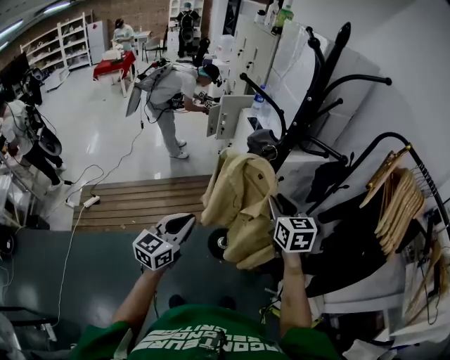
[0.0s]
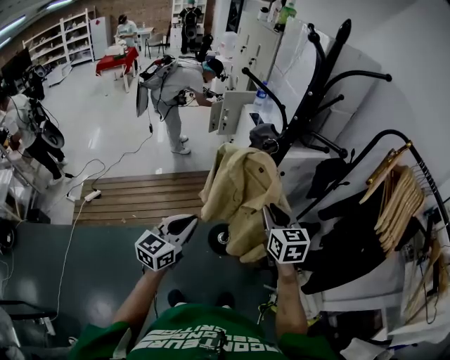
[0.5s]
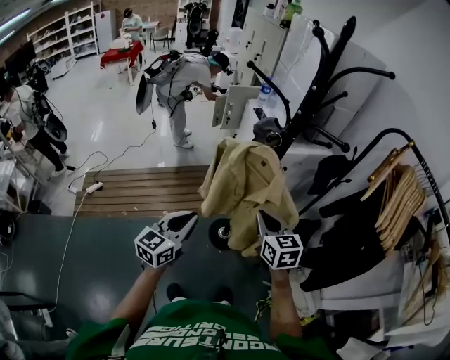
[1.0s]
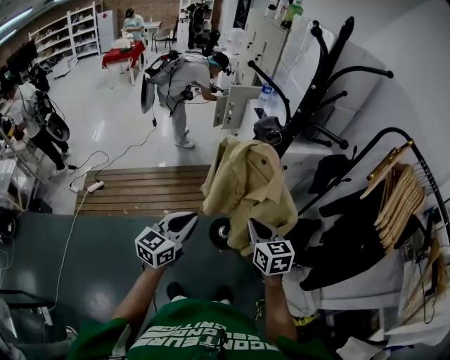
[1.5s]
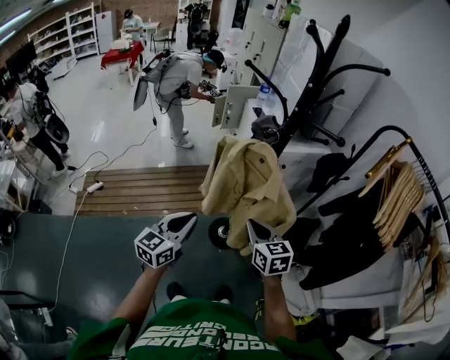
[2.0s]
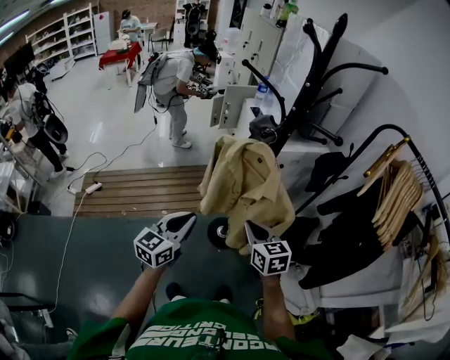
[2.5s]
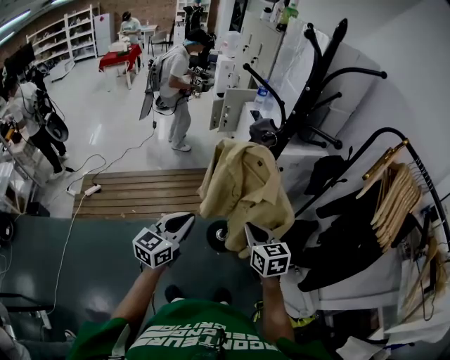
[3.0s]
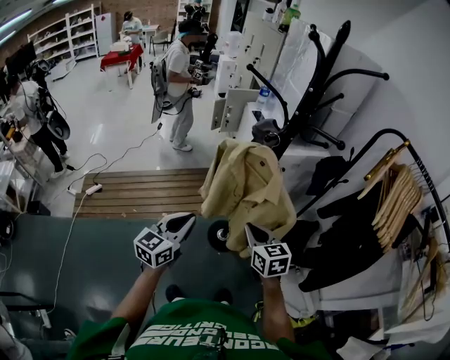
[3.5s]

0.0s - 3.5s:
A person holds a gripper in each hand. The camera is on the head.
0.0s - 2.0s: The left gripper travels backward by about 5 cm; the right gripper heads backward and downward, covering approximately 15 cm, and closes.
2.0s - 3.5s: Both grippers stay about where they are.

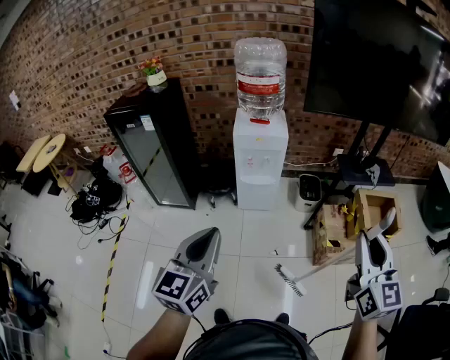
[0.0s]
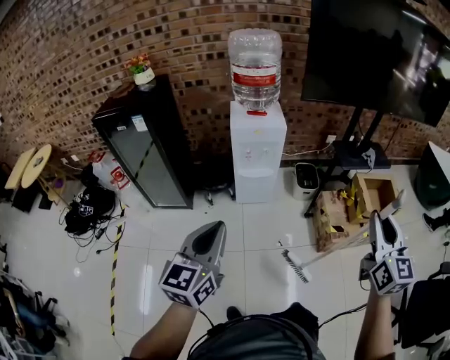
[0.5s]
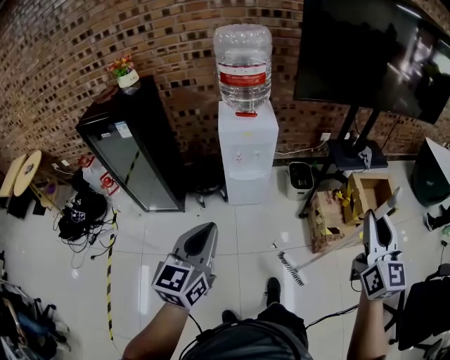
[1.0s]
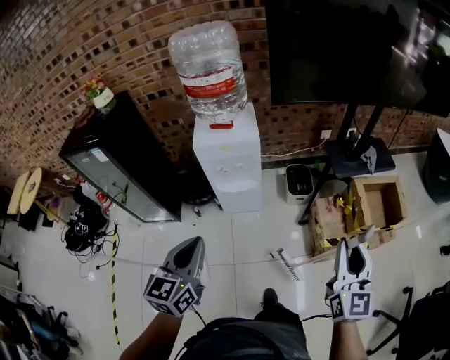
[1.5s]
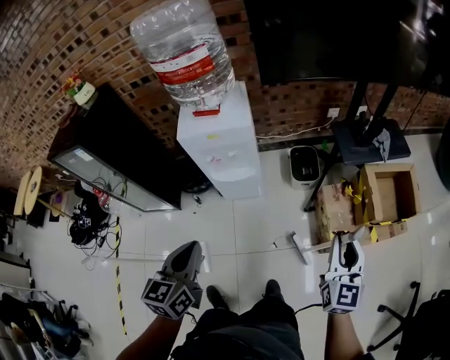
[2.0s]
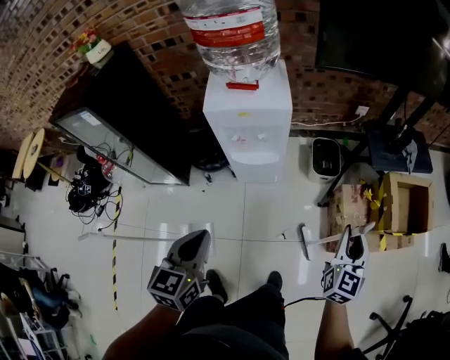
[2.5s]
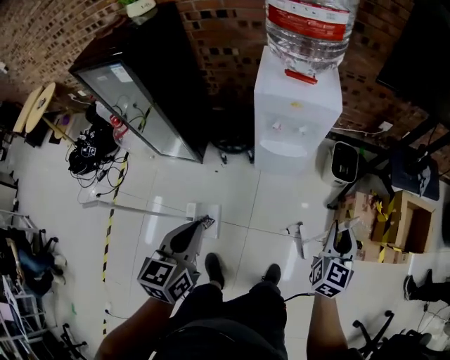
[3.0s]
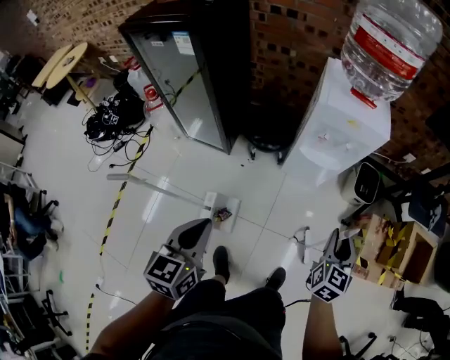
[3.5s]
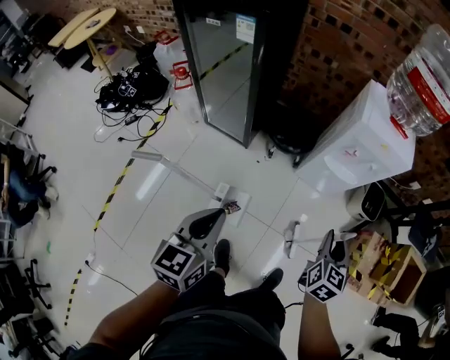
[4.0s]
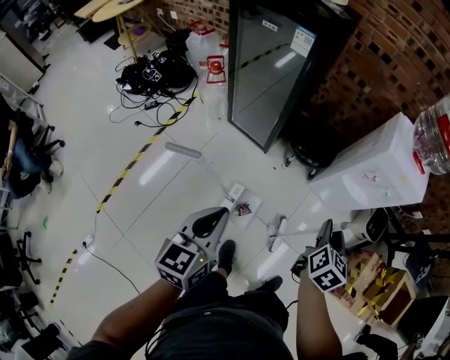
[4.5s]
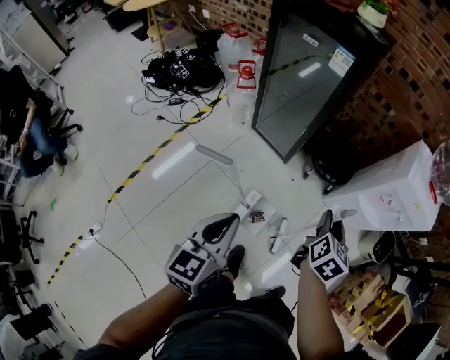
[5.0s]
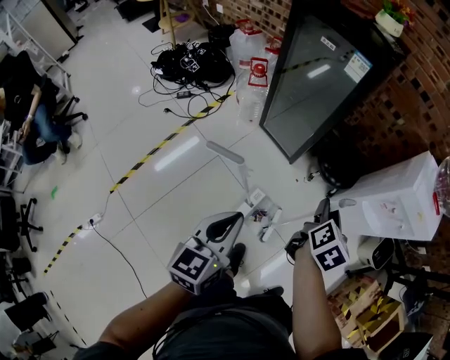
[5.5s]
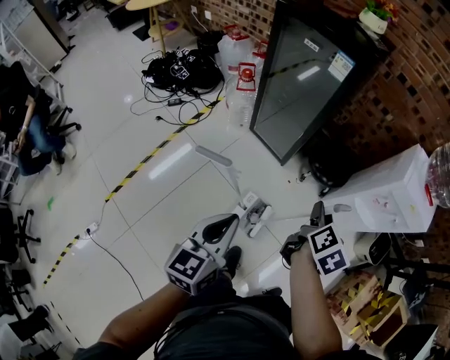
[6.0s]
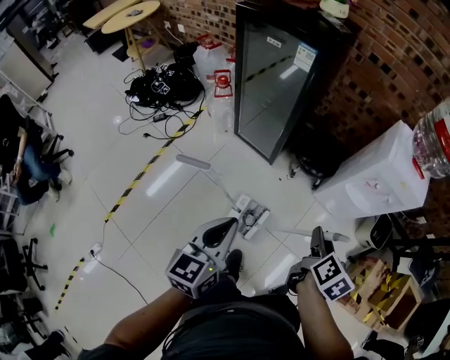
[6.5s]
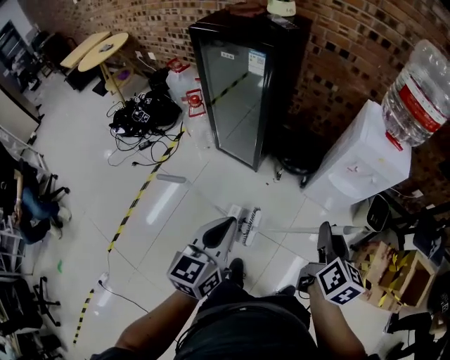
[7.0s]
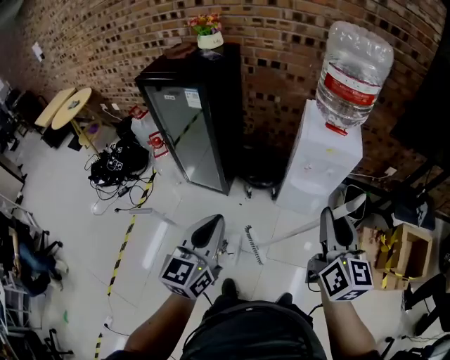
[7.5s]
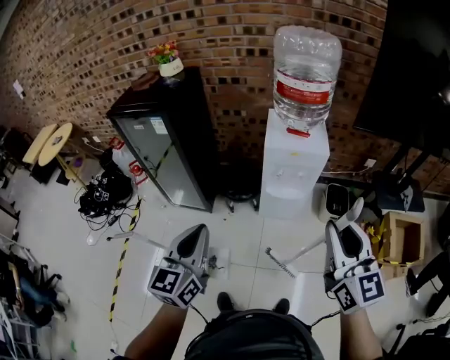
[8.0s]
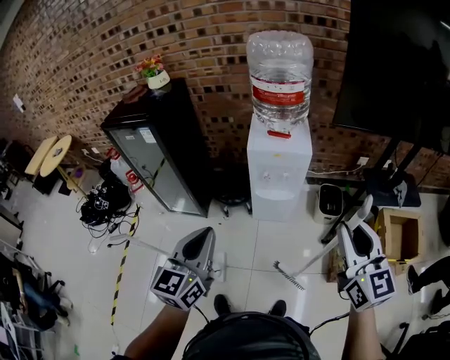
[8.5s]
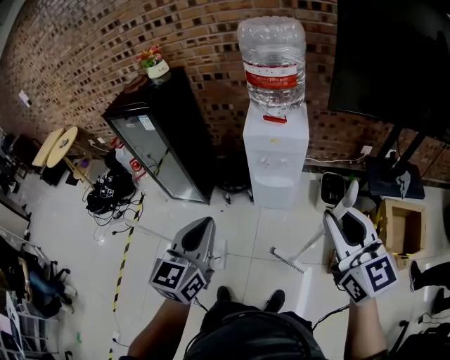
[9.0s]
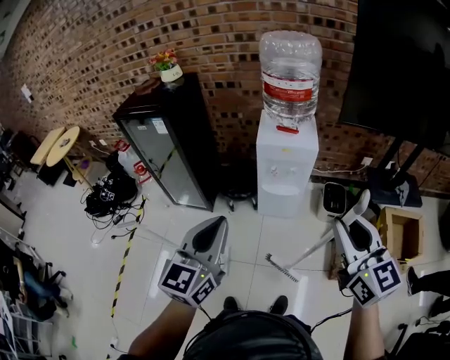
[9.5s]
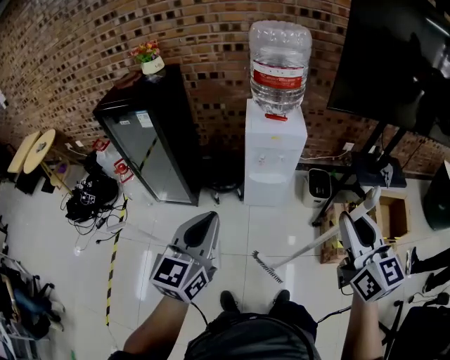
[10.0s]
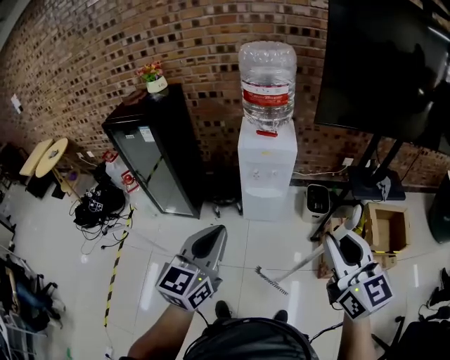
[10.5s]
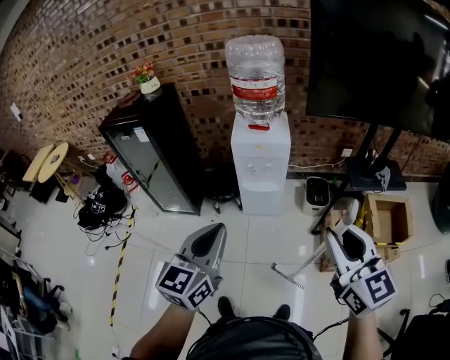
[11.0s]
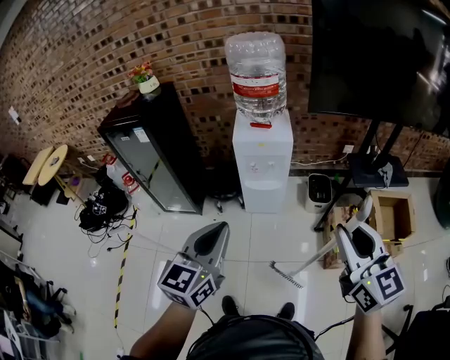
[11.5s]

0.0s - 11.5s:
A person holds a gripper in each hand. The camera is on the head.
0.0s - 2.0s: The two grippers go some 40 cm forward and downward.
2.0s - 4.0s: Both grippers are carried to the left, roughly 50 cm. The right gripper changes its angle by roughly 20 degrees.
4.0s - 6.0s: The left gripper travels to the left by roughly 15 cm; the right gripper goes approximately 30 cm to the left, and turns by about 30 degrees.
6.0s - 7.5s: Both grippers move to the right and upward, about 40 cm. The left gripper swivels roughly 20 degrees. Meanwhile the right gripper turns by some 30 degrees.
7.5s - 9.5s: The left gripper heads to the right and upward, covering about 20 cm. Meanwhile the right gripper is displaced to the right, backward and upward by roughly 25 cm.
9.5s - 11.5s: The right gripper goes about 10 cm to the right and backward, while the left gripper moves to the right, approximately 10 cm.

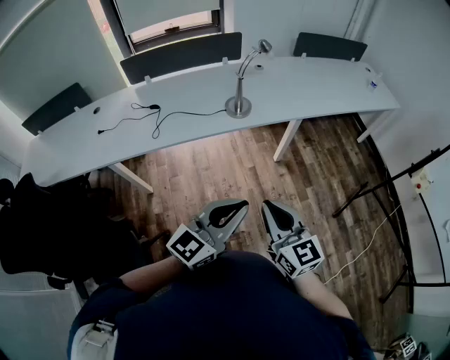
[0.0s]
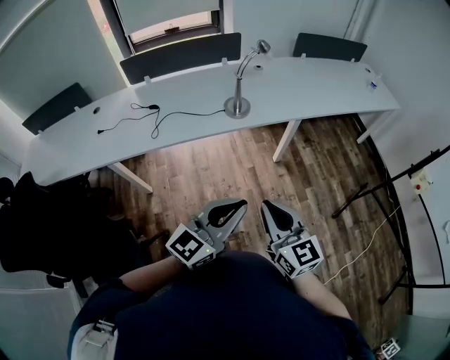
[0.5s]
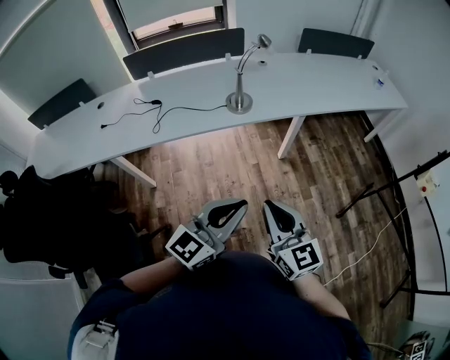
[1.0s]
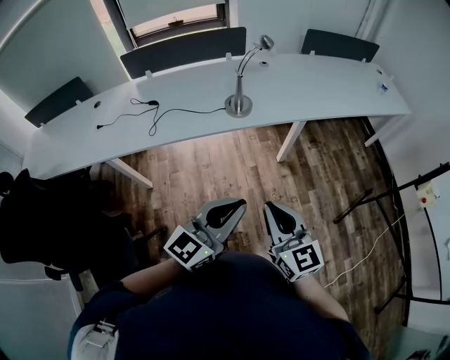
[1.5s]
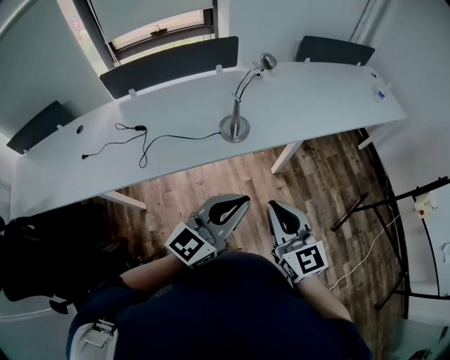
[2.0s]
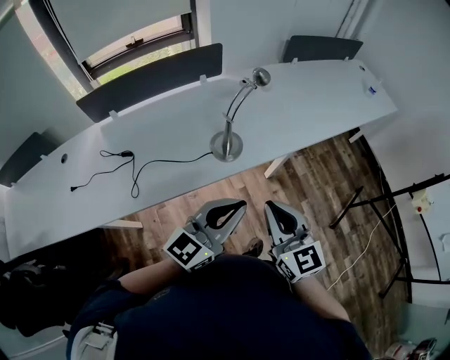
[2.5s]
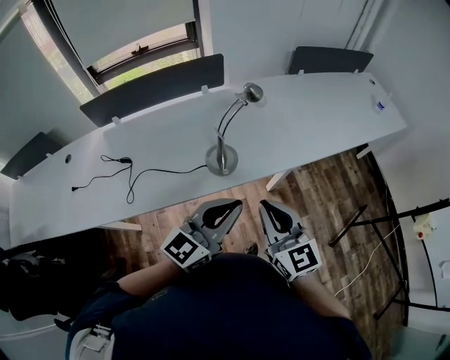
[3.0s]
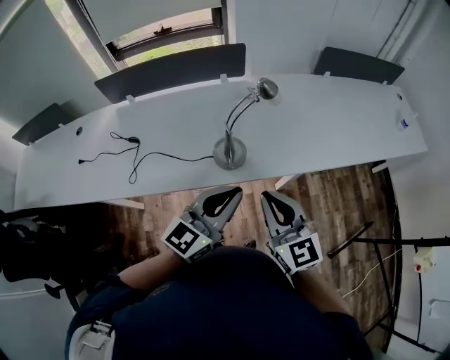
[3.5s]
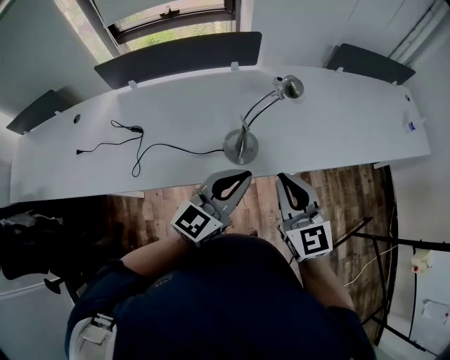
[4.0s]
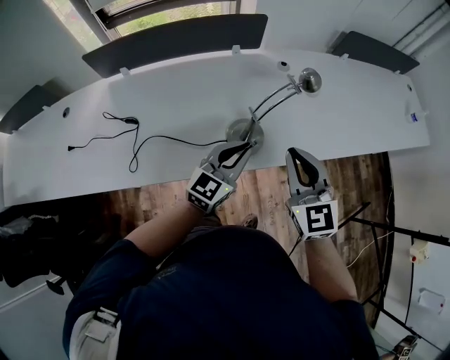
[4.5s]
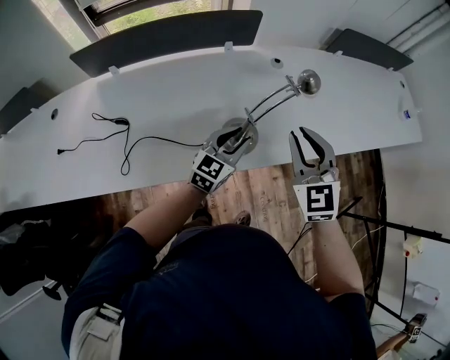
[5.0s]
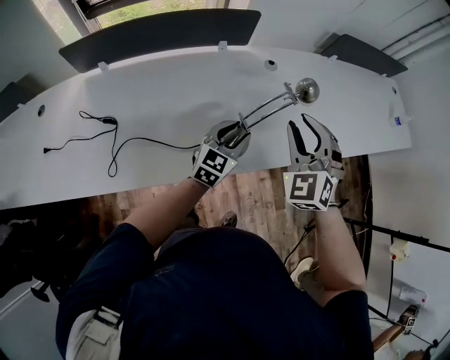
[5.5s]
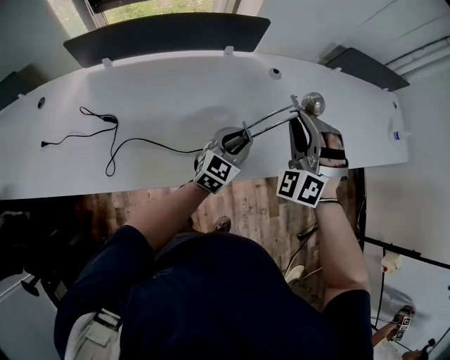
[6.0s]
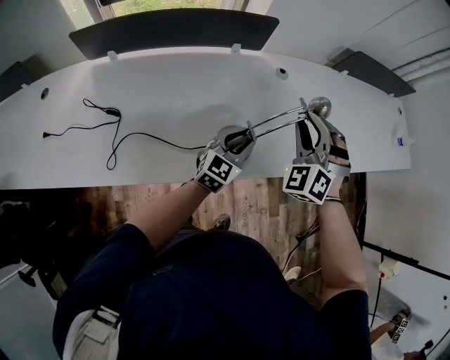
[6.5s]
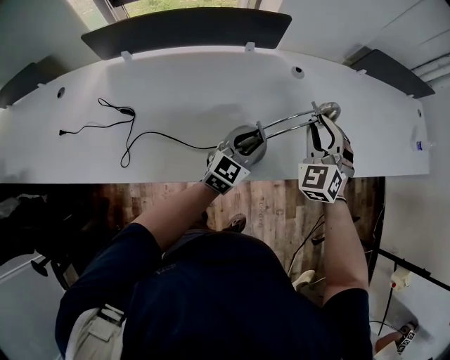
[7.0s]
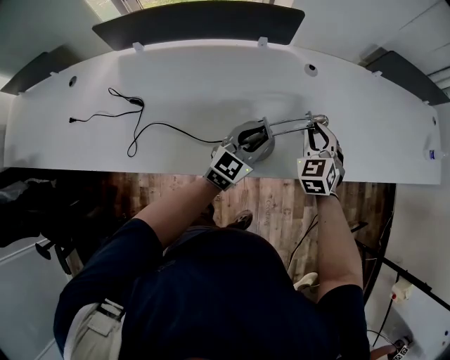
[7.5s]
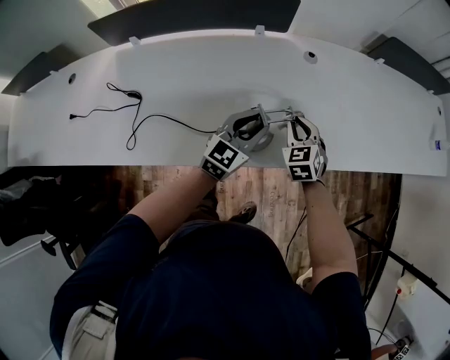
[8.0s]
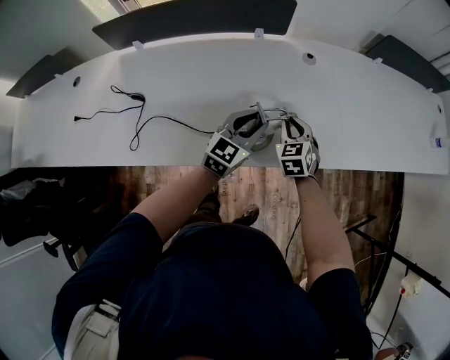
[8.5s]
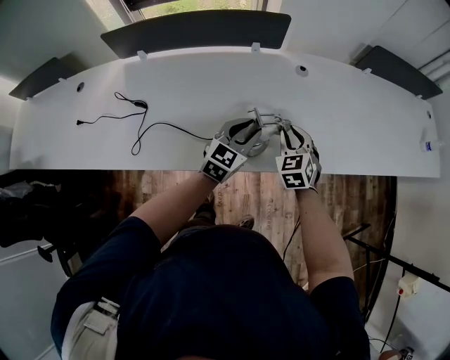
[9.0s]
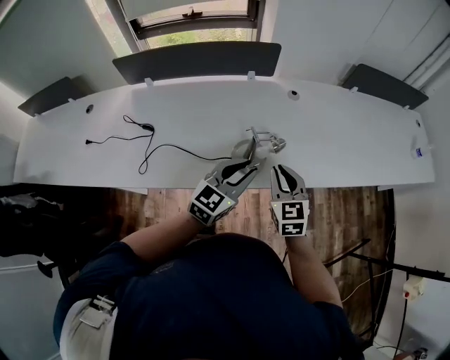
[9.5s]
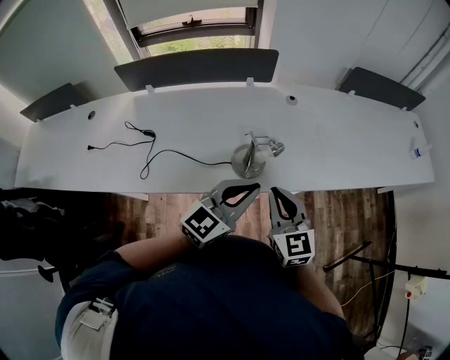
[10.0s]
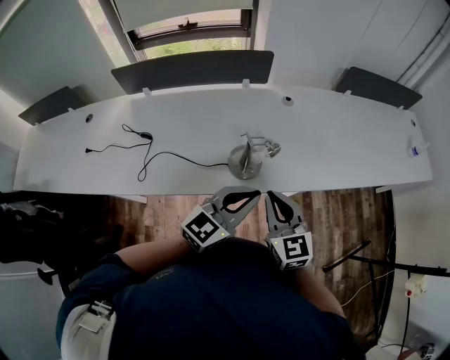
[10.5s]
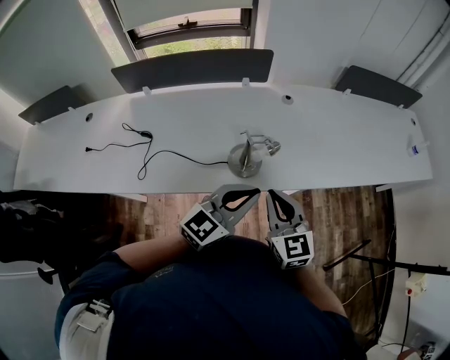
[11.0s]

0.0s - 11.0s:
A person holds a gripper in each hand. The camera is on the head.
0.0s - 2.0s: The grippers both shift forward by approximately 20 cm.
2.0s - 3.5s: Both grippers move forward, about 20 cm.
3.5s - 5.5s: The right gripper travels forward by some 20 cm, rotates around the line of its fingers by some 50 degrees, counterclockwise from behind, and opens up; the left gripper heads forward and downward, covering approximately 30 cm, and opens its fingers.
5.5s - 7.5s: The right gripper shifts approximately 15 cm downward and forward.
7.5s - 9.0s: The right gripper reaches some 10 cm downward, then returns.
9.0s - 11.0s: The two grippers go about 25 cm backward and upward. The left gripper rotates some 20 degrees, and closes its fingers. The right gripper rotates some 30 degrees.

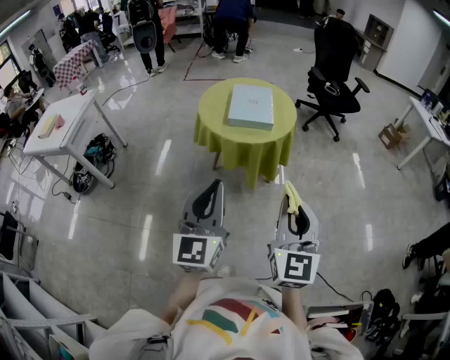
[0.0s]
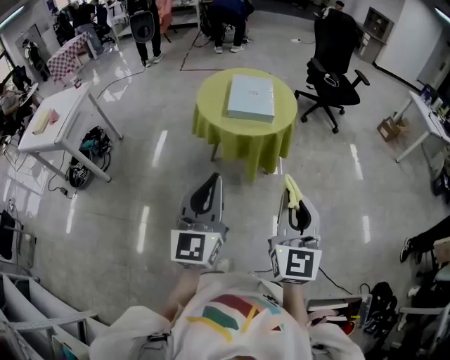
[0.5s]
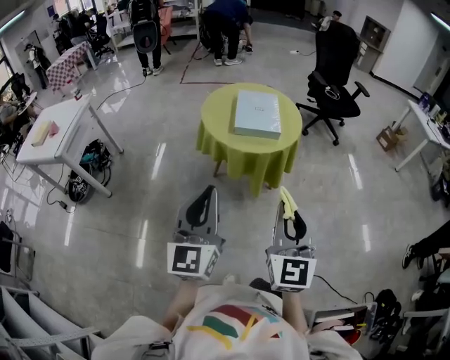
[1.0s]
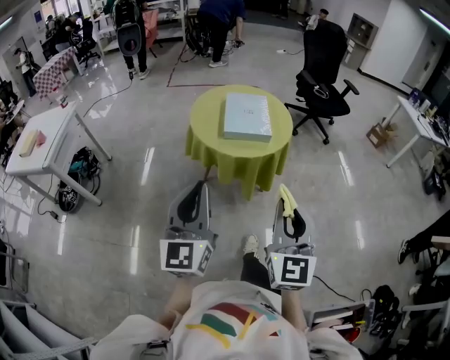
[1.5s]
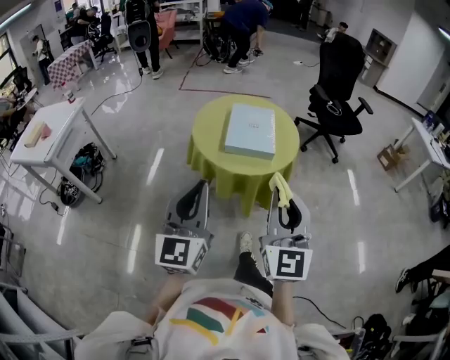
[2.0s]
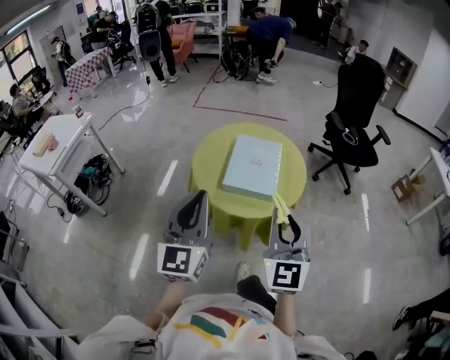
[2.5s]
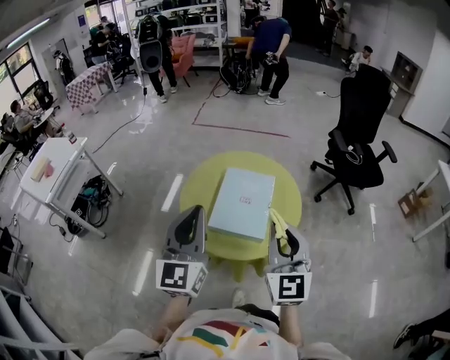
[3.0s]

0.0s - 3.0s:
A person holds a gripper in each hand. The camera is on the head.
0.0s - 1.5s: The right gripper shifts about 10 cm forward and to the left, while the left gripper travels to the left and forward by roughly 10 cm.
1.5s - 3.0s: The two grippers go approximately 35 cm forward.
